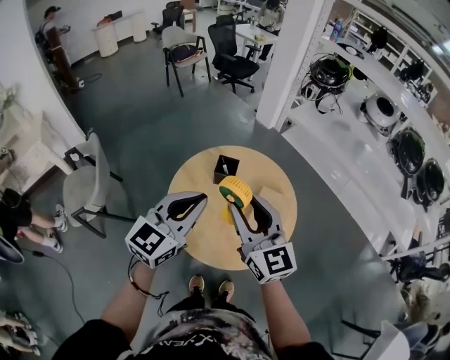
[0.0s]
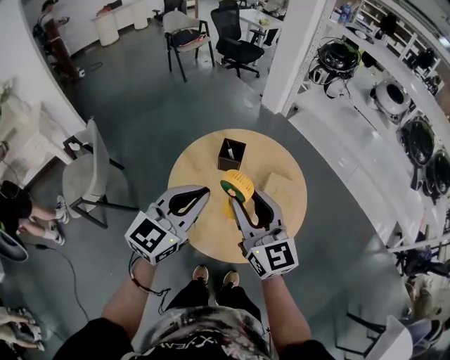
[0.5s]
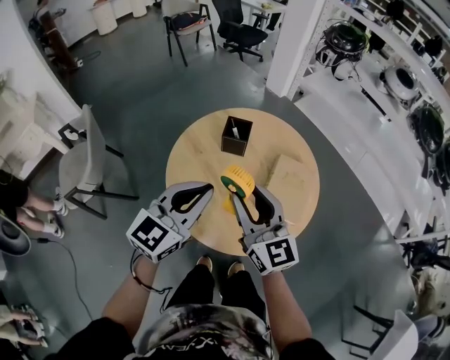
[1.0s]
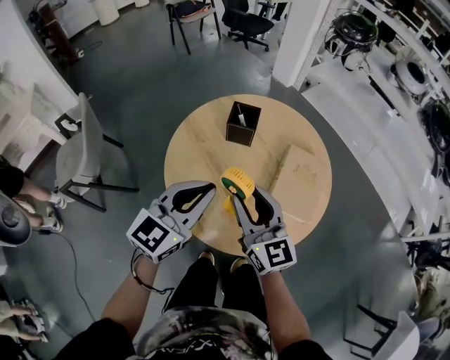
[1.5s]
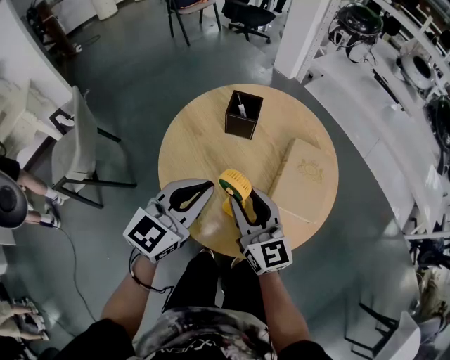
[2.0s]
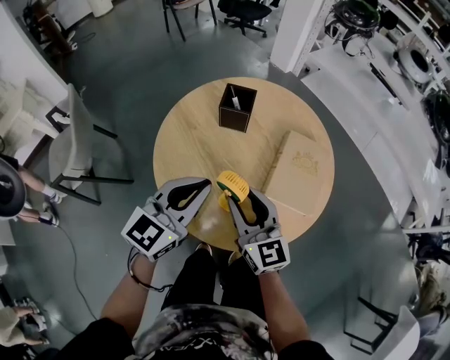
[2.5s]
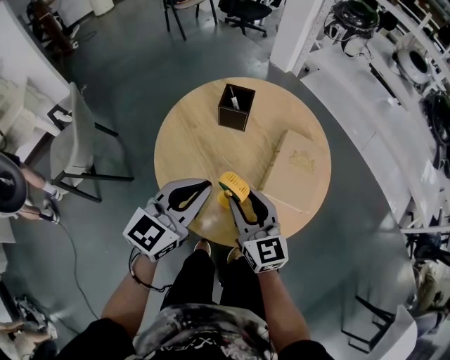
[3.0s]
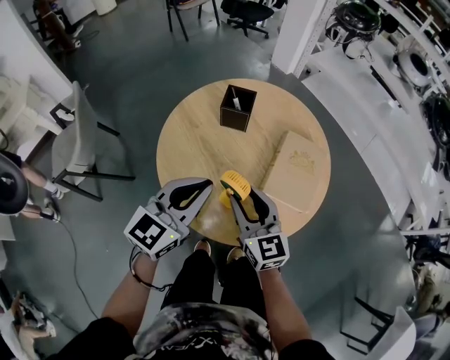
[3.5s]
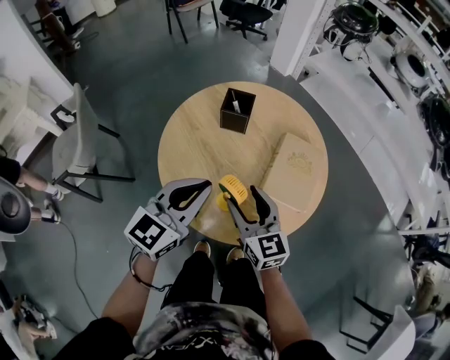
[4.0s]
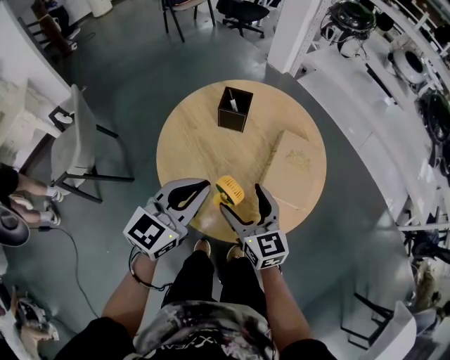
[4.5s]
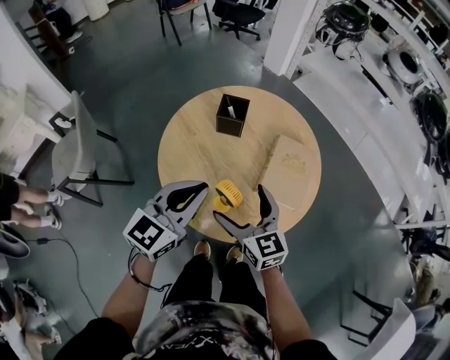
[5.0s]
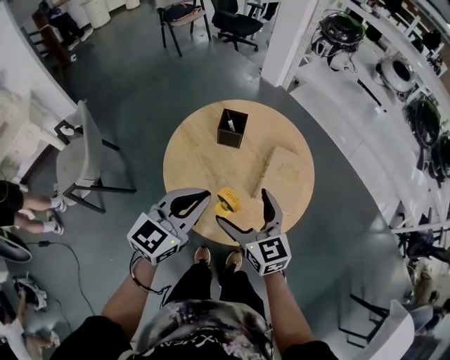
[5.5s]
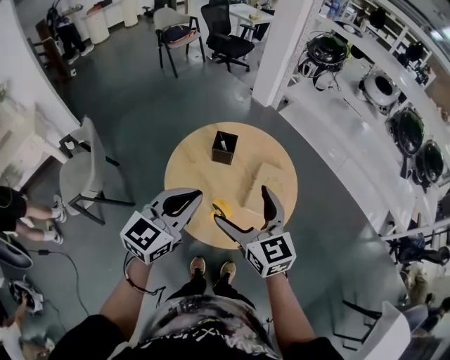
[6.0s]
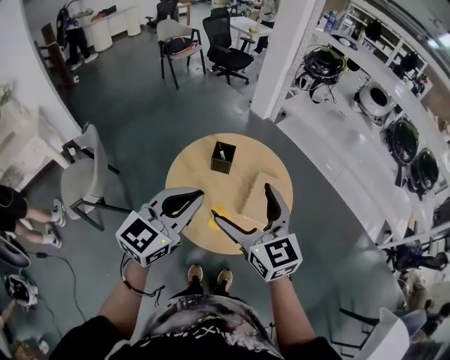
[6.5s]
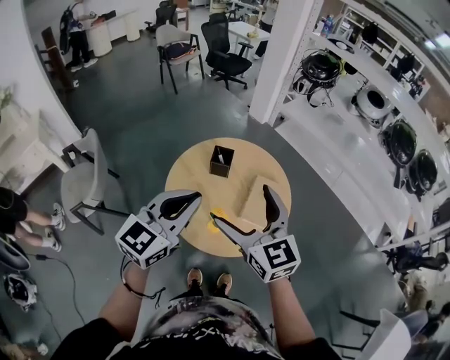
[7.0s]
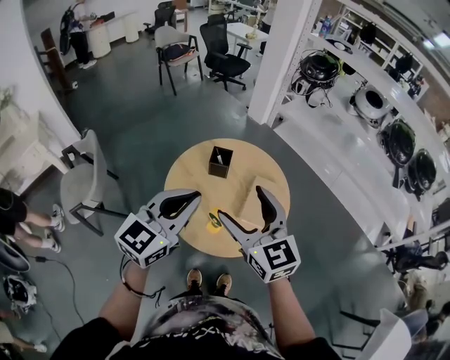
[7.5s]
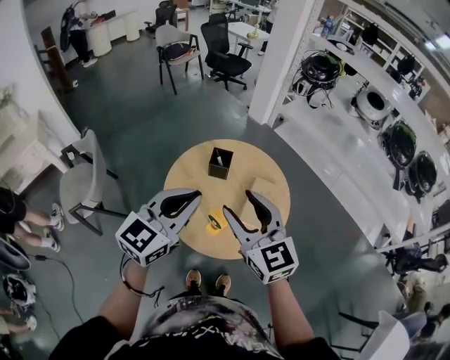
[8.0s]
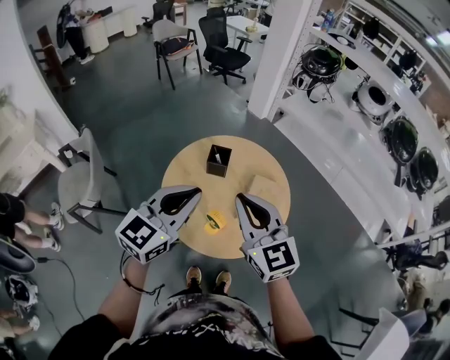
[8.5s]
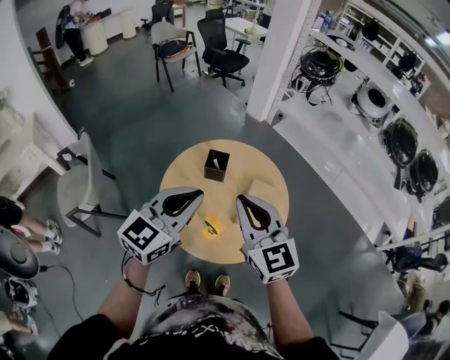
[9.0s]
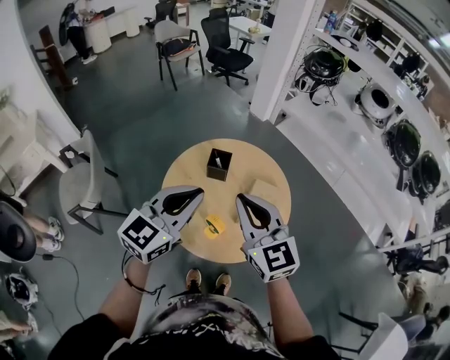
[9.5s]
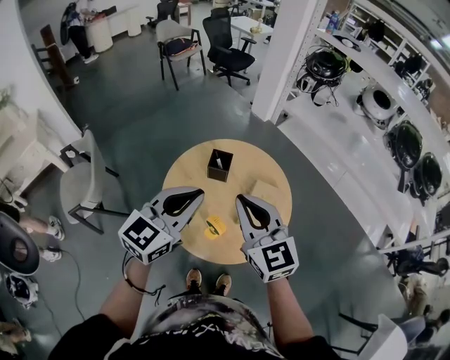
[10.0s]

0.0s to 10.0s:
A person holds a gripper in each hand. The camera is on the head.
0.0s to 2.0s: Both grippers travel together downward, approximately 25 cm.
2.0s to 4.0s: The grippers move only a little.
4.0s to 6.0s: Both grippers move upward, roughly 20 cm. The right gripper opens up.
6.0s to 8.0s: The two grippers go approximately 5 cm upward. The right gripper closes its fingers.
8.0s to 10.0s: The right gripper closes.

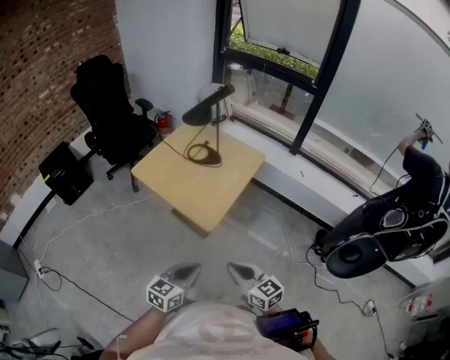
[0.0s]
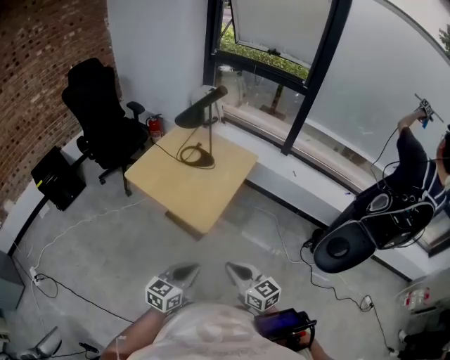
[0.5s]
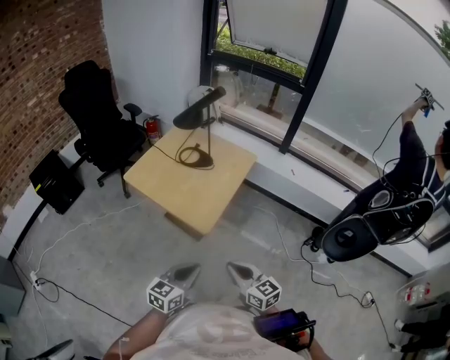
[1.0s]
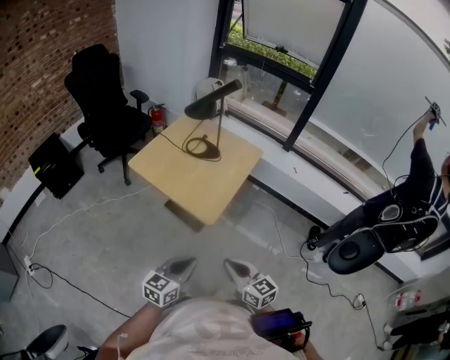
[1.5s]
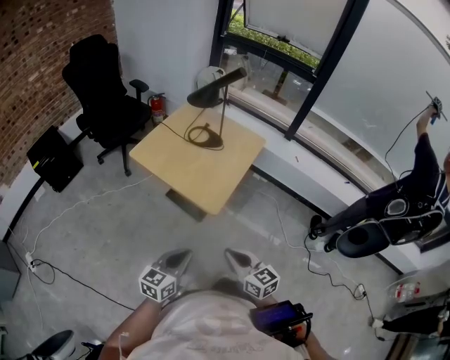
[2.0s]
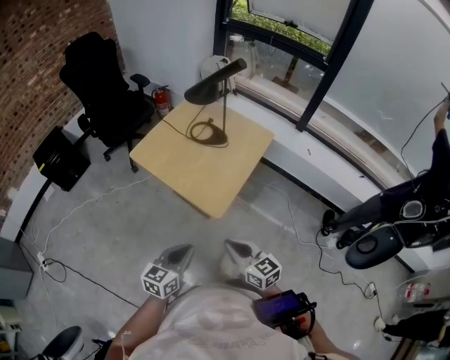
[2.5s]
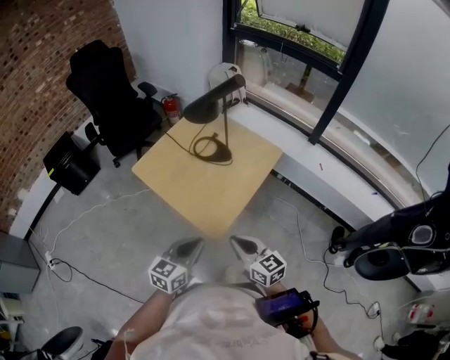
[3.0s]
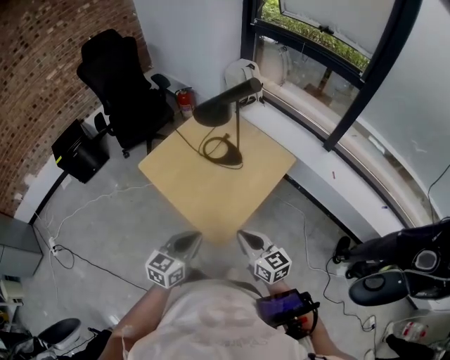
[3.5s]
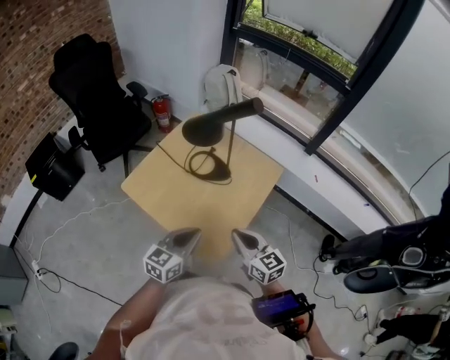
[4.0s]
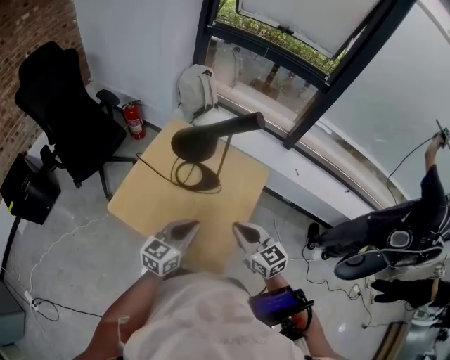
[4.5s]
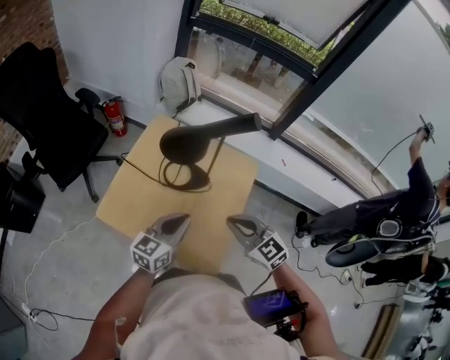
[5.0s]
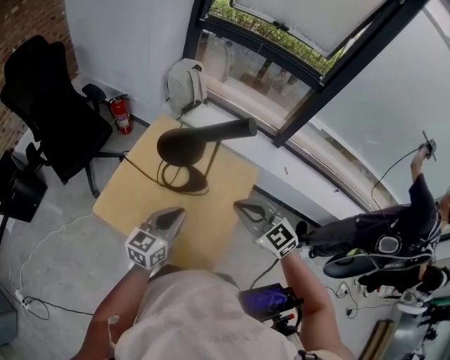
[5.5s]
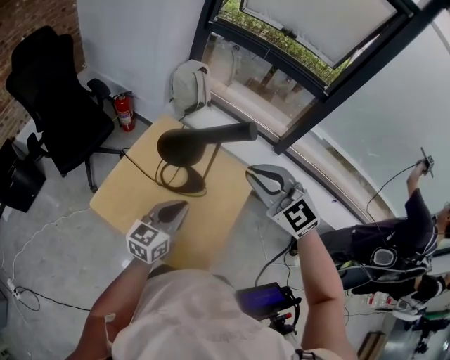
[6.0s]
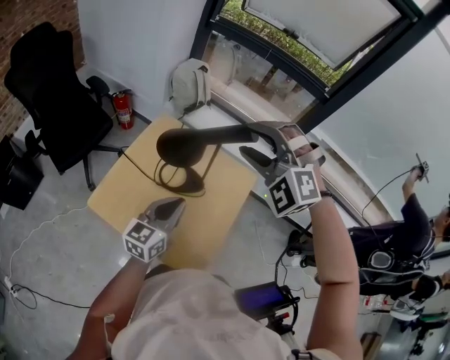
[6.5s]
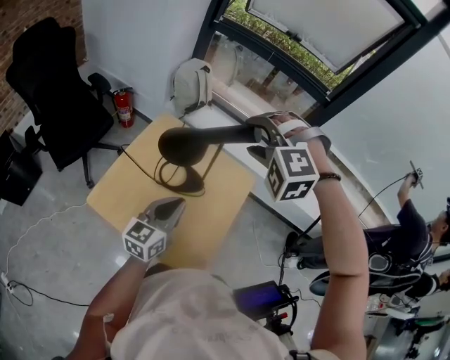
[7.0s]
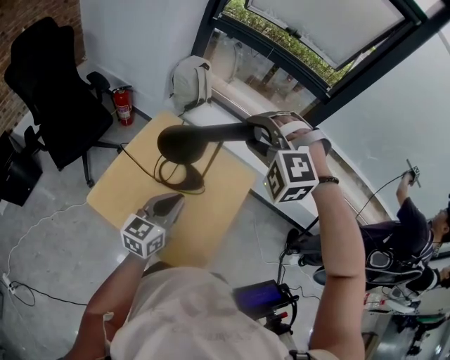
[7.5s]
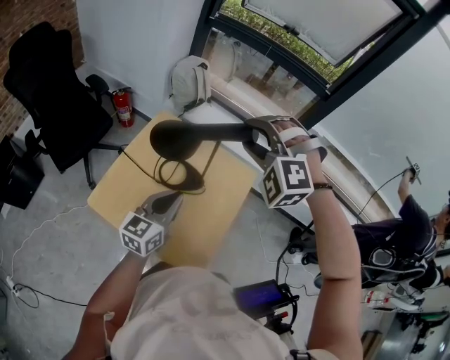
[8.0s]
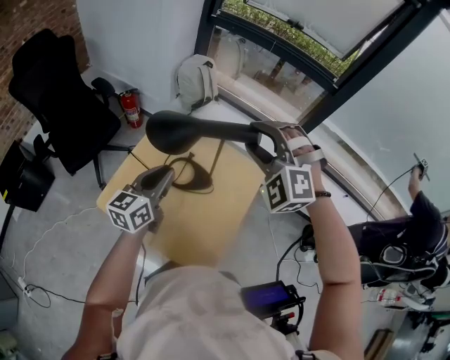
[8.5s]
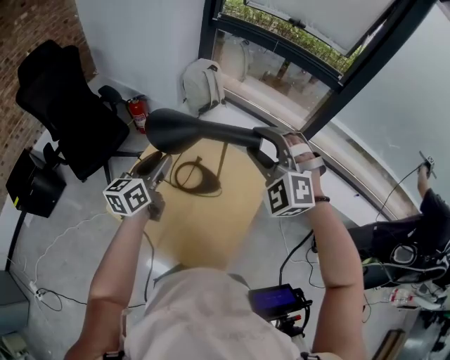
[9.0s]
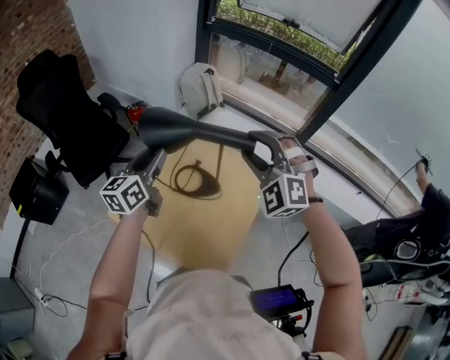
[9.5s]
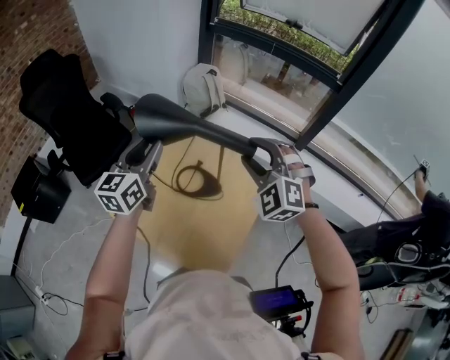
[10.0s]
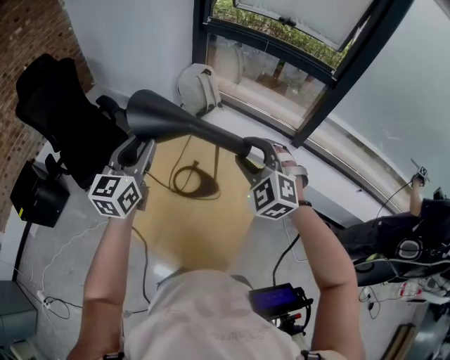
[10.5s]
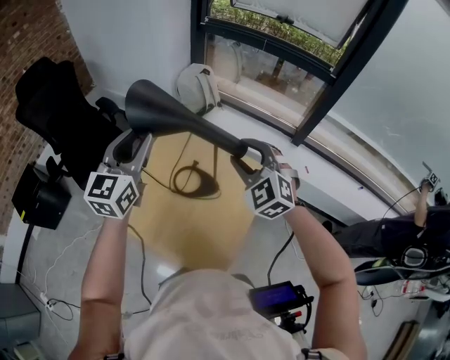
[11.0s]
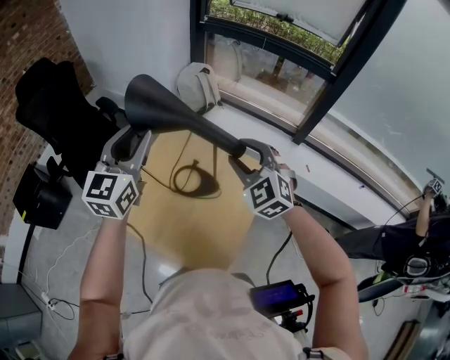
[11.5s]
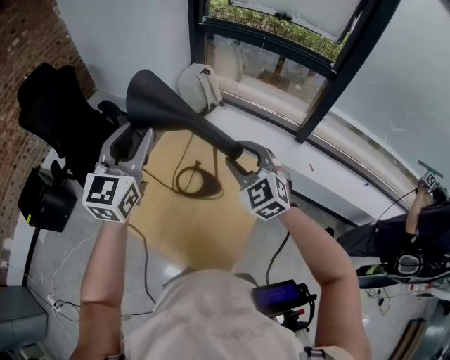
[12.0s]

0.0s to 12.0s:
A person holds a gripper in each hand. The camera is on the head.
0.0s to 2.0s: Both grippers move to the left, roughly 5 cm.
2.0s to 4.0s: The two grippers go about 30 cm forward.
4.0s to 6.0s: The right gripper goes some 30 cm upward and forward, and rolls counterclockwise, seen from behind, by some 40 degrees. Meanwhile the left gripper goes approximately 15 cm forward.
6.0s to 8.0s: The right gripper heads forward, covering approximately 10 cm, rolls counterclockwise, seen from behind, by roughly 50 degrees, and opens.
8.0s to 10.0s: The left gripper goes roughly 20 cm forward, upward and to the left, and opens; the right gripper changes its angle by approximately 30 degrees.
10.0s to 12.0s: The left gripper shifts roughly 10 cm upward, and changes its angle by roughly 20 degrees. The right gripper changes its angle by some 30 degrees.

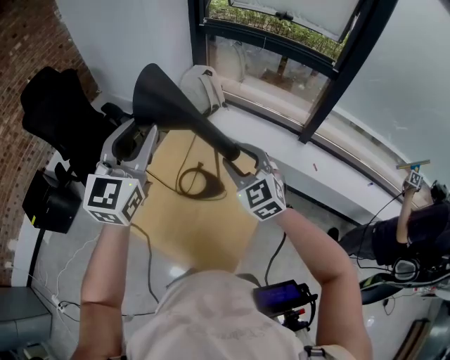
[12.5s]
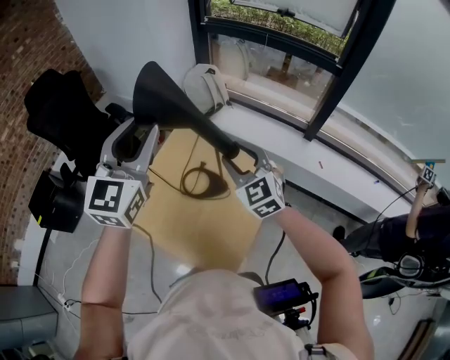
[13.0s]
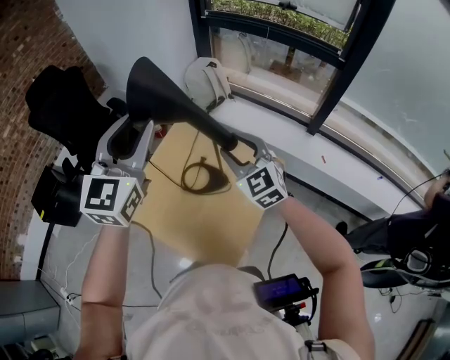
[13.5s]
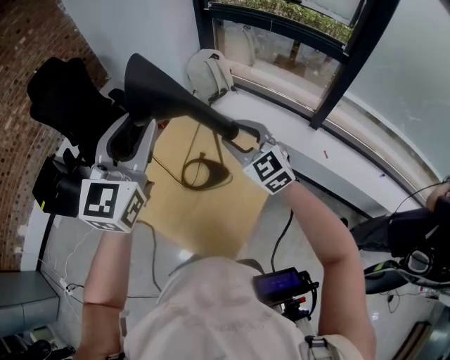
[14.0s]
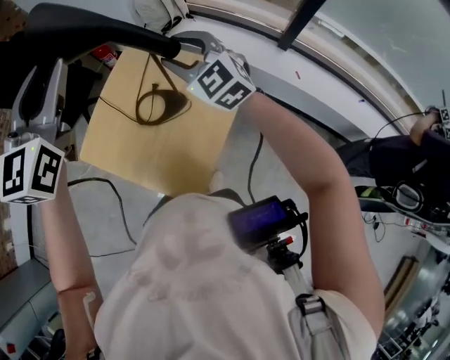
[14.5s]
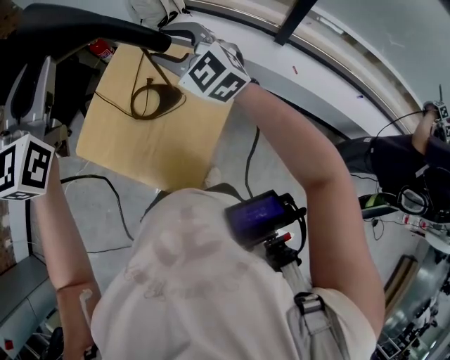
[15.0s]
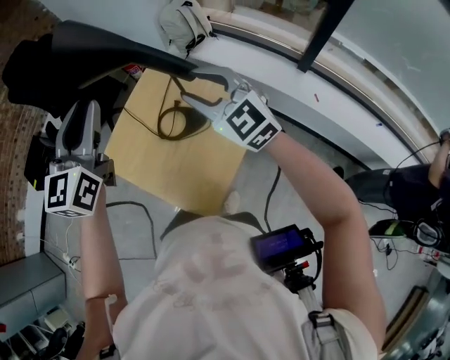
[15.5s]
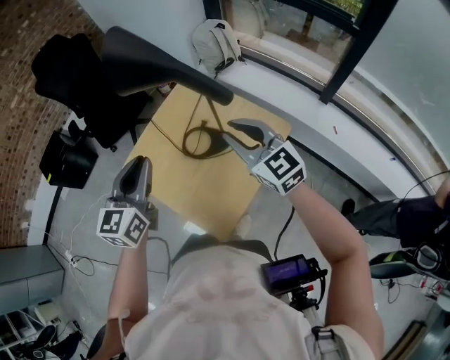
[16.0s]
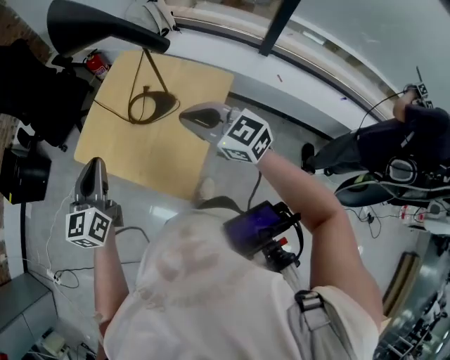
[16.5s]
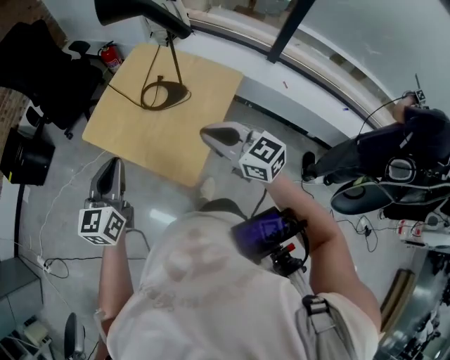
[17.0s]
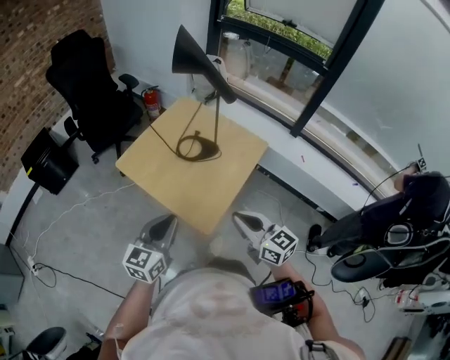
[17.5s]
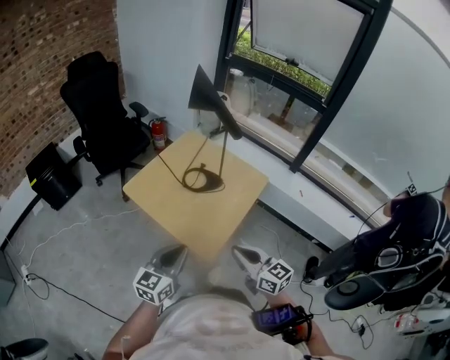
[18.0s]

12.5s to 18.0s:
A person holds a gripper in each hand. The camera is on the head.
12.5s to 14.5s: The left gripper moves some 5 cm.
14.5s to 16.0s: The left gripper moves downward and backward, approximately 20 cm, and turns by approximately 20 degrees. The right gripper travels backward by approximately 10 cm, turns by some 20 degrees, and closes.
16.0s to 18.0s: Both grippers move backward, roughly 30 cm. The right gripper turns by approximately 20 degrees.
